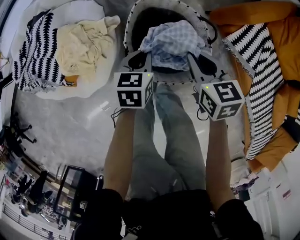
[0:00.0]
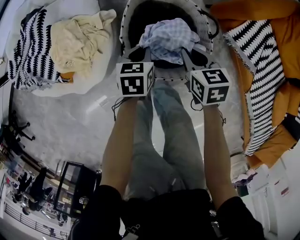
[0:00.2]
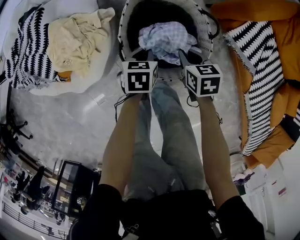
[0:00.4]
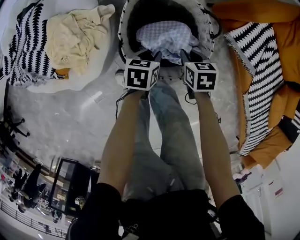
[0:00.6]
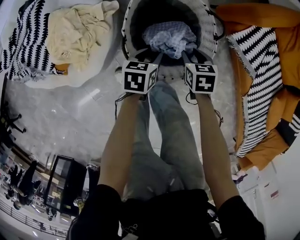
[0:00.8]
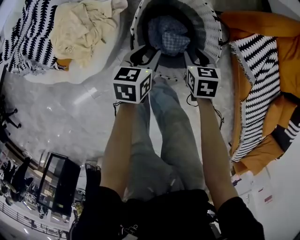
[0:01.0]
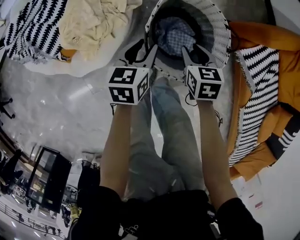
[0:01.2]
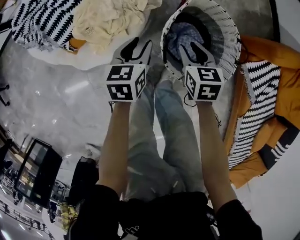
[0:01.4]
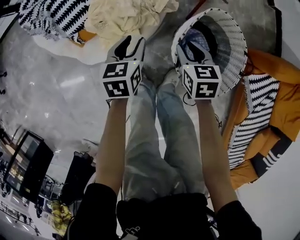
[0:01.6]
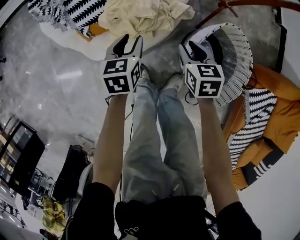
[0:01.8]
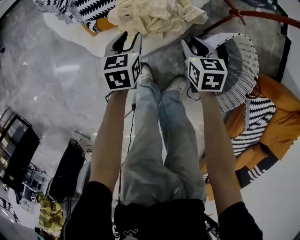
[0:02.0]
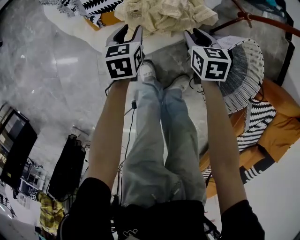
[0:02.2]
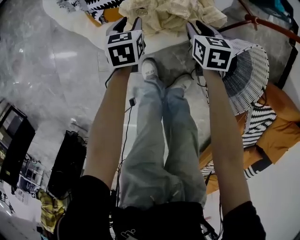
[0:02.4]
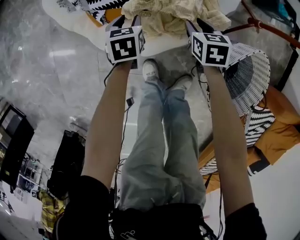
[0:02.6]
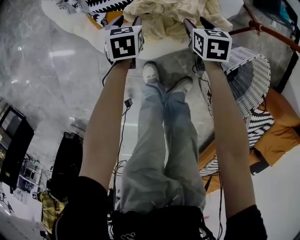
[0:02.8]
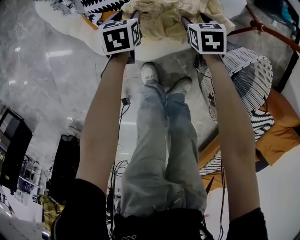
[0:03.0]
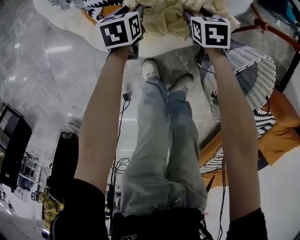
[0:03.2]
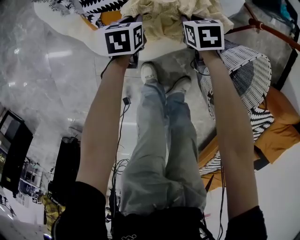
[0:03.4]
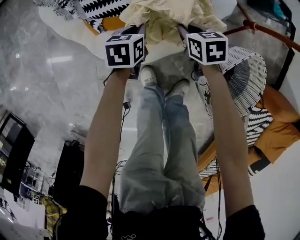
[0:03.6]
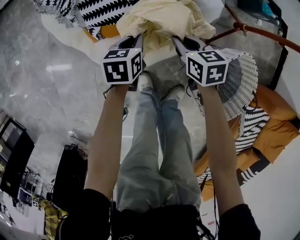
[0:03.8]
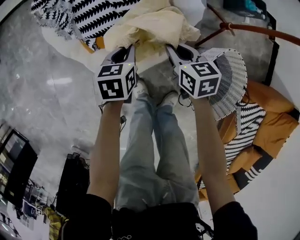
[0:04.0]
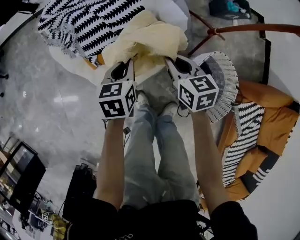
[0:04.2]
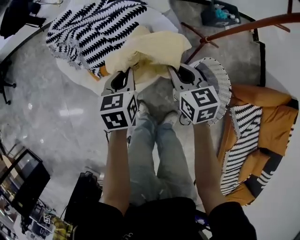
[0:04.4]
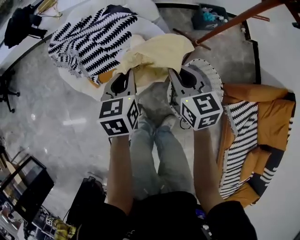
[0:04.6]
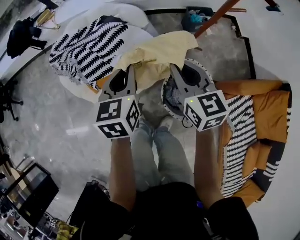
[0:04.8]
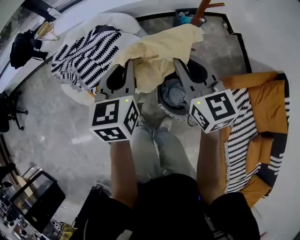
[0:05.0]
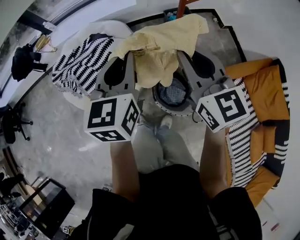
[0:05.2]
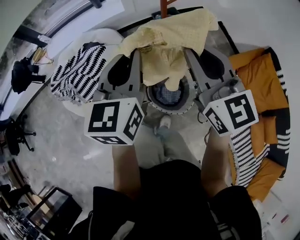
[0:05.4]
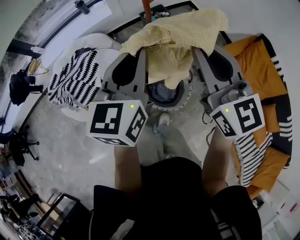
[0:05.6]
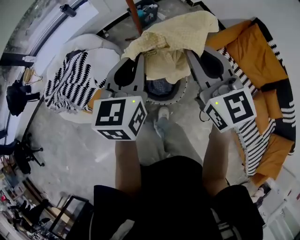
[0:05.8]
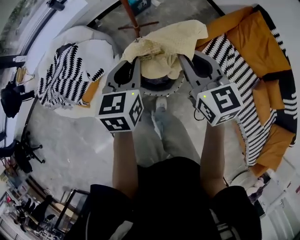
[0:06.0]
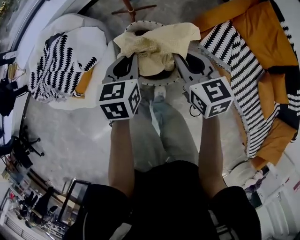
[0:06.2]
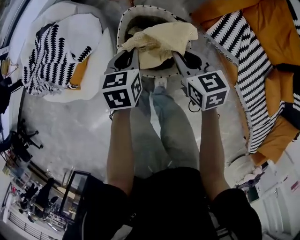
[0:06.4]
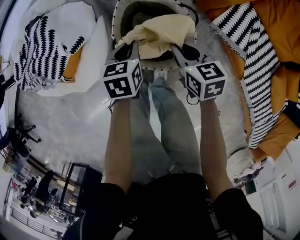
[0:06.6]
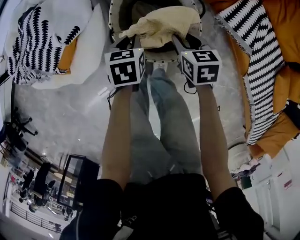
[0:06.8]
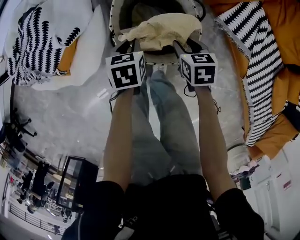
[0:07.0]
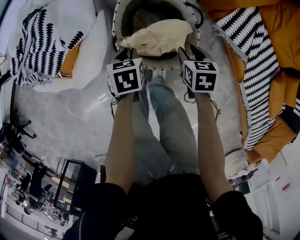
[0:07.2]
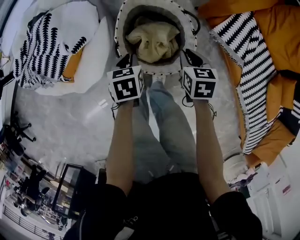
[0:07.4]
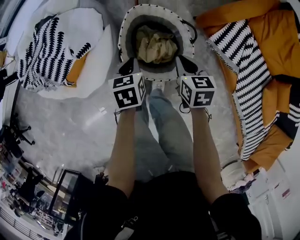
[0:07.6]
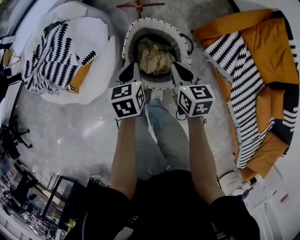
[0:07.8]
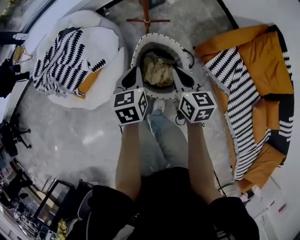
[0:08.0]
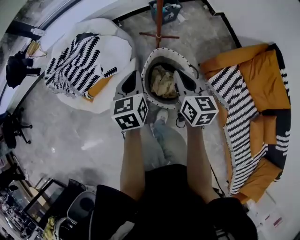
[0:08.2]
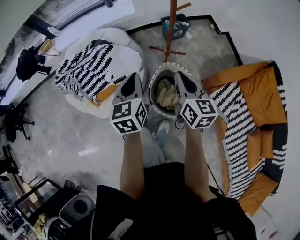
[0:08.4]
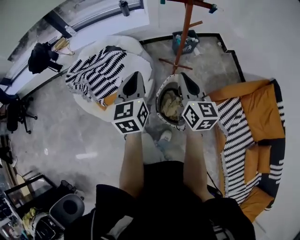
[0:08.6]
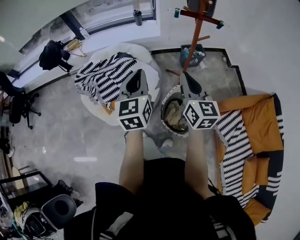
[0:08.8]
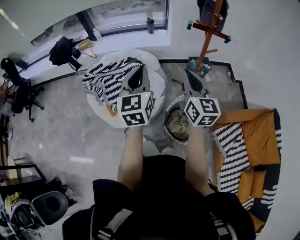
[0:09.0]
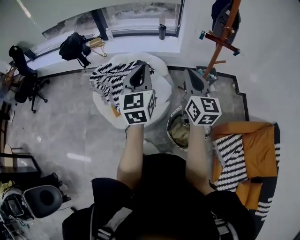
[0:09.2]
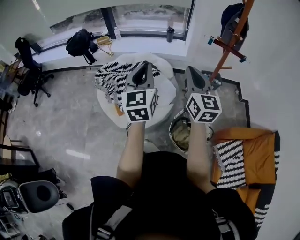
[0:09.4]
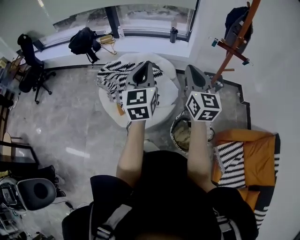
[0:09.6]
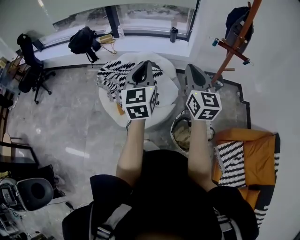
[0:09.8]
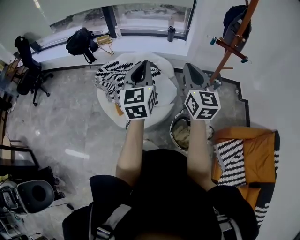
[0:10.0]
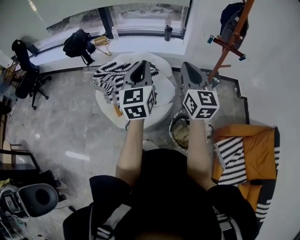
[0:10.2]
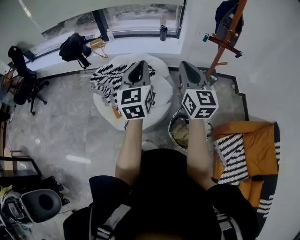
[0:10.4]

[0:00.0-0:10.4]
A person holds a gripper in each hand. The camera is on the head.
0:00.0 to 0:01.4: The left gripper moves roughly 10 cm downward and comes back, turns by some 20 degrees, and opens up; the right gripper shifts by some 20 cm, and opens its fingers.
0:01.4 to 0:03.0: The left gripper moves roughly 40 cm, and swivels approximately 30 degrees. The right gripper changes place by approximately 35 cm, changes its angle by some 30 degrees, and opens.
0:03.0 to 0:04.4: Both grippers move upward, approximately 35 cm. The right gripper tips its fingers upward by approximately 30 degrees, and closes up. The left gripper closes.
0:04.4 to 0:06.0: The right gripper moves some 50 cm, and turns by approximately 30 degrees. The left gripper moves about 40 cm, and swivels some 40 degrees.
0:06.0 to 0:07.4: Both grippers move downward, about 35 cm. The left gripper tilts its fingers approximately 30 degrees downward, while the right gripper points its fingers about 30 degrees further downward, and opens and closes again.
0:07.4 to 0:09.0: Both grippers travel together upward, some 50 cm. The left gripper tilts its fingers approximately 60 degrees upward. The right gripper points its fingers roughly 50 degrees further upward.
0:09.0 to 0:10.4: The left gripper is displaced to the left by roughly 10 cm; the right gripper moves to the left and upward, some 10 cm.

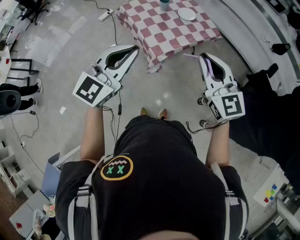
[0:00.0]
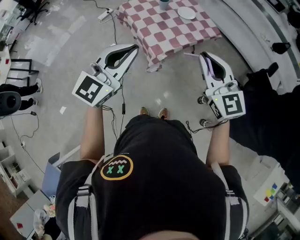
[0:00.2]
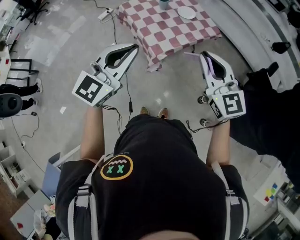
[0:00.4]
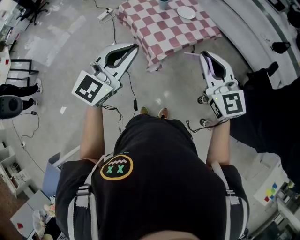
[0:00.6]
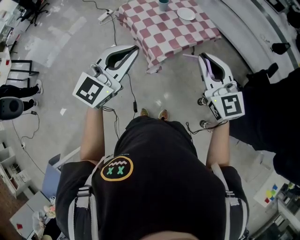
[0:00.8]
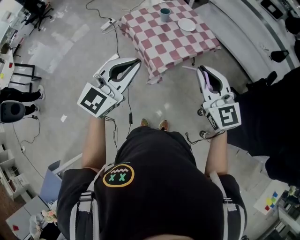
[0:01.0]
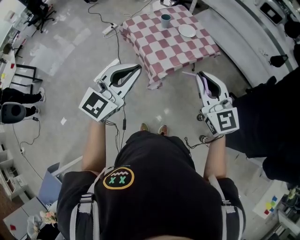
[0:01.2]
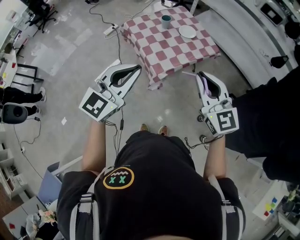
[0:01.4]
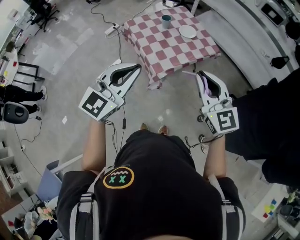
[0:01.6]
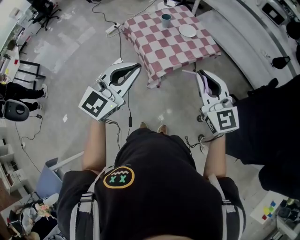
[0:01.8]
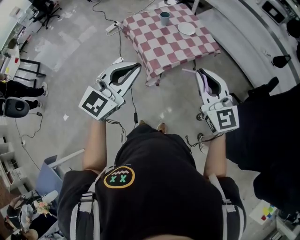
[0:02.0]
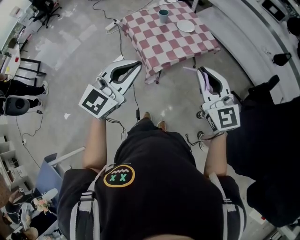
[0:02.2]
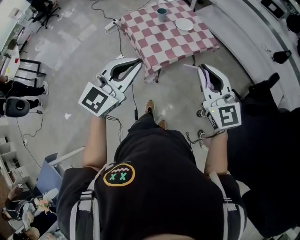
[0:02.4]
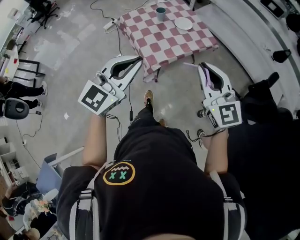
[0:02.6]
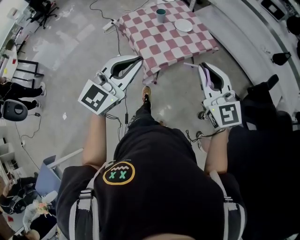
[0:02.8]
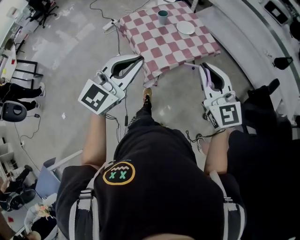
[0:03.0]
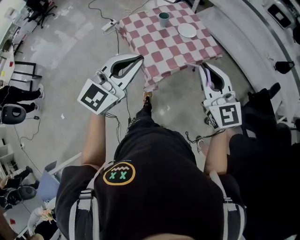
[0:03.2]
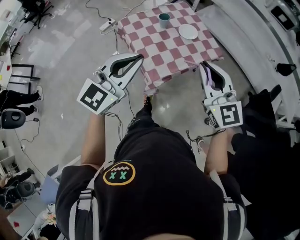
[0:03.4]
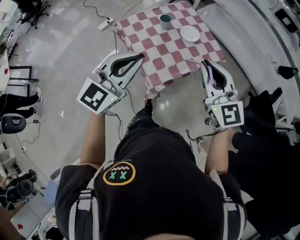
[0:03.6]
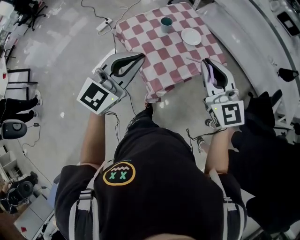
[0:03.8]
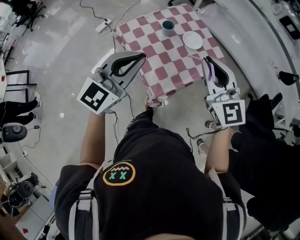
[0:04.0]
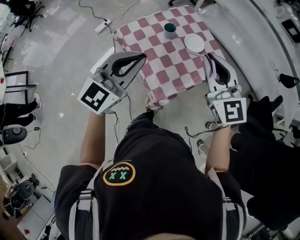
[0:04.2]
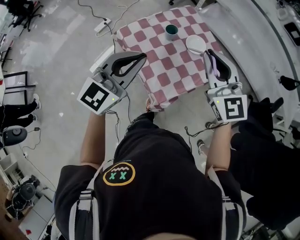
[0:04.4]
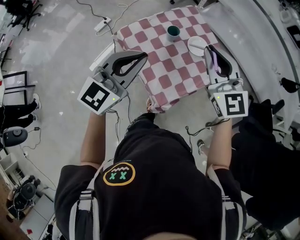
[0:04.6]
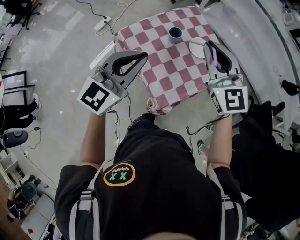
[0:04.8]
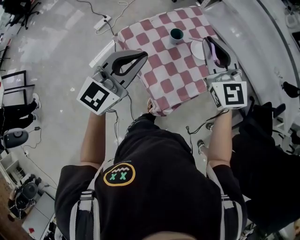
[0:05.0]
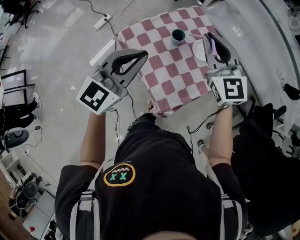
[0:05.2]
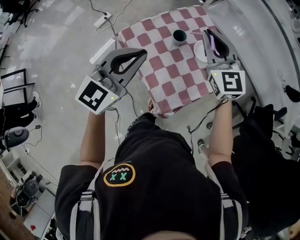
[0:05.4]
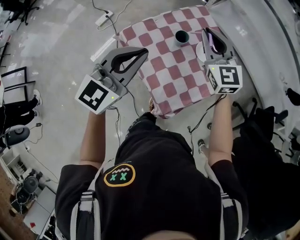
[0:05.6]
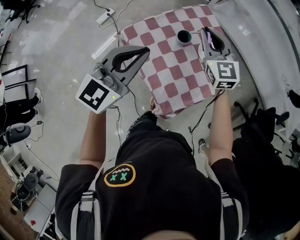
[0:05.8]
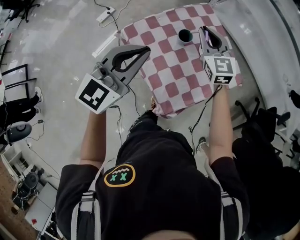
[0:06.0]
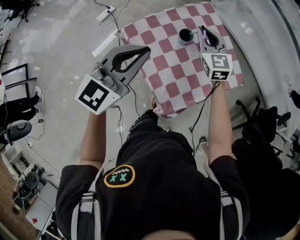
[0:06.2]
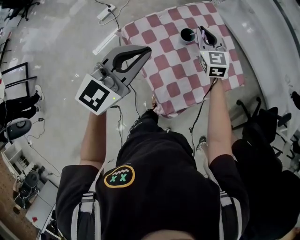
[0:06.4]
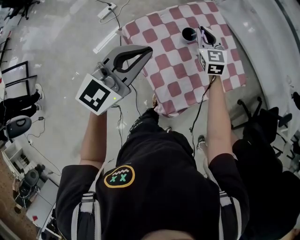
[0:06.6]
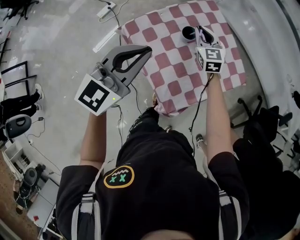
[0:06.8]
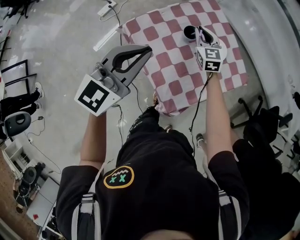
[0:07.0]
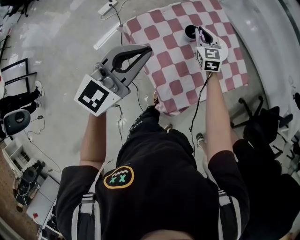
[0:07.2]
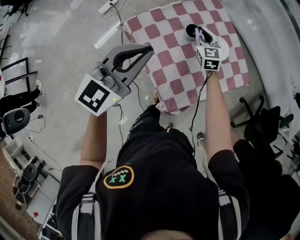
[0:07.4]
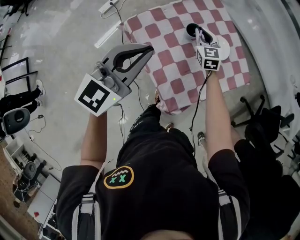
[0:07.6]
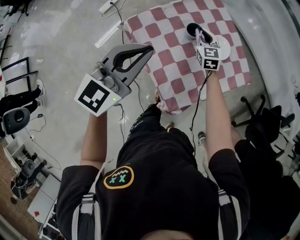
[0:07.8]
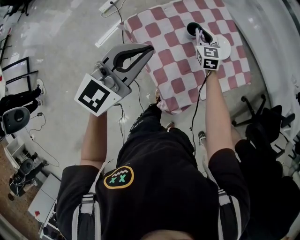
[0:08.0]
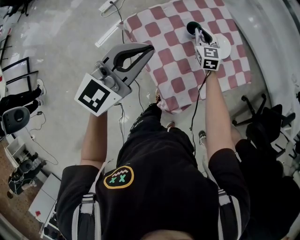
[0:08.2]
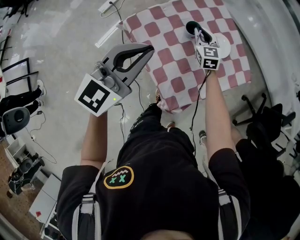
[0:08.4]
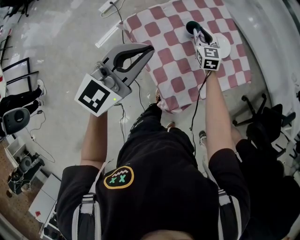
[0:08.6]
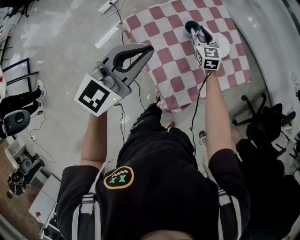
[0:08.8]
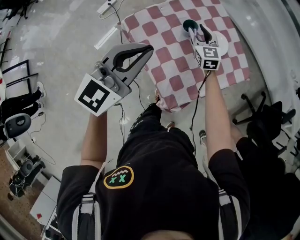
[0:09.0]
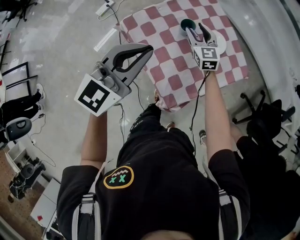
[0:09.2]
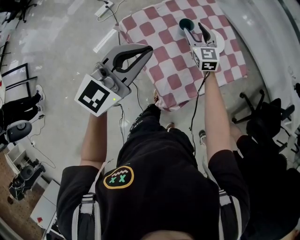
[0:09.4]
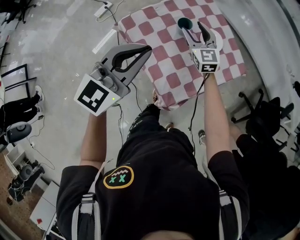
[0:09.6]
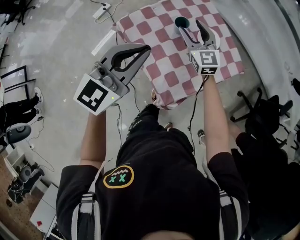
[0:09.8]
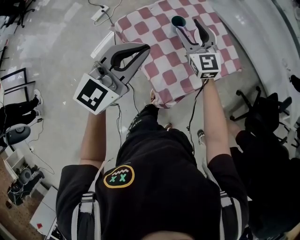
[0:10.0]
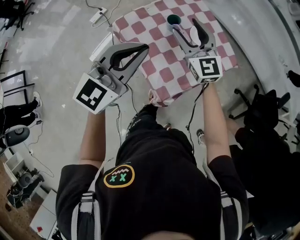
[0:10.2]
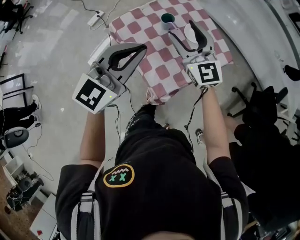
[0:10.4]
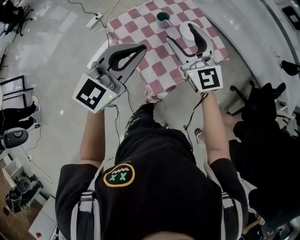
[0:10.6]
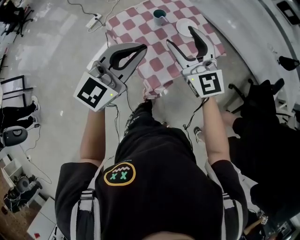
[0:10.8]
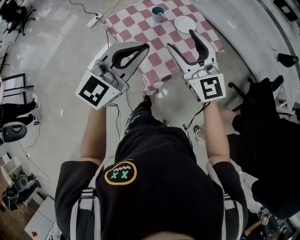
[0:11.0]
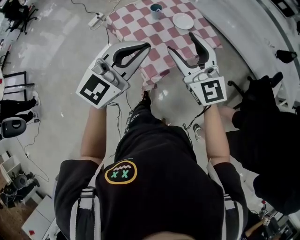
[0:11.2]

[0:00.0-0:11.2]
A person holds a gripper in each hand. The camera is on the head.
0:00.0 to 0:01.6: The grippers make only small movements.
0:01.6 to 0:03.2: The two grippers go roughly 10 cm forward.
0:03.2 to 0:04.8: Both grippers move forward and to the left, roughly 35 cm.
0:04.8 to 0:06.4: The right gripper heads downward and forward, covering approximately 30 cm, while the left gripper heads forward, covering about 10 cm.
0:06.4 to 0:08.0: The right gripper is displaced downward by approximately 10 cm.
0:08.0 to 0:09.6: The right gripper travels upward and backward by some 10 cm, and opens up.
0:09.6 to 0:11.2: The right gripper travels backward and upward by some 40 cm, and swivels approximately 20 degrees. The left gripper goes approximately 25 cm backward and to the right.

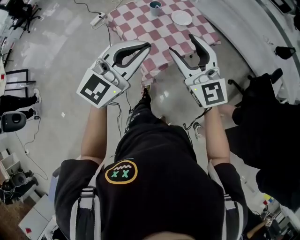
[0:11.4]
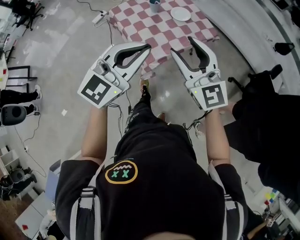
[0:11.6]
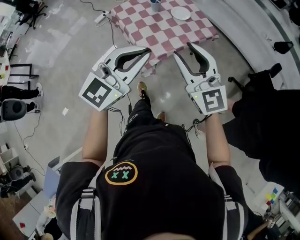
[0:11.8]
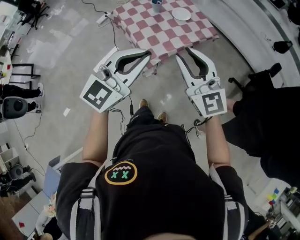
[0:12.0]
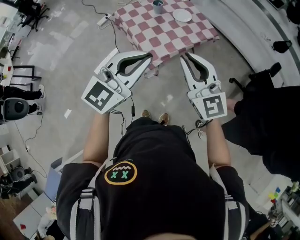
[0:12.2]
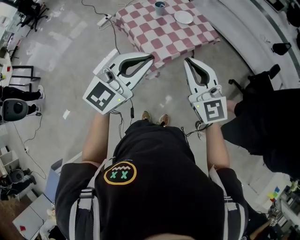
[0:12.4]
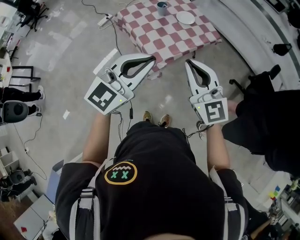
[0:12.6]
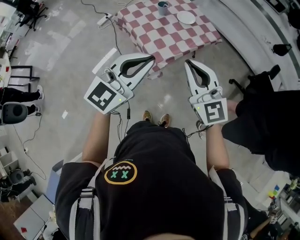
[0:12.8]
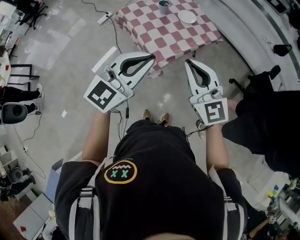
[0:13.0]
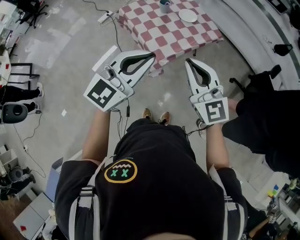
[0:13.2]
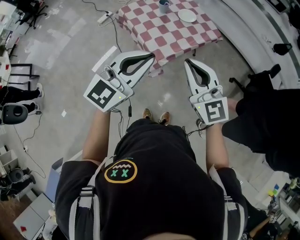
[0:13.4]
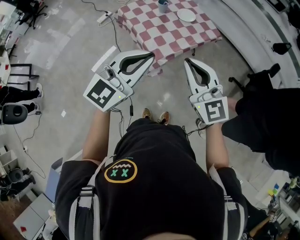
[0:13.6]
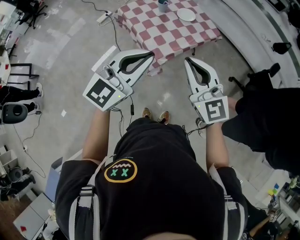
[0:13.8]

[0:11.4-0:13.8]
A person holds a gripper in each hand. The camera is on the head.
0:11.4 to 0:12.6: The two grippers go some 15 cm backward. The right gripper closes up.
0:12.6 to 0:13.8: There are only small adjustments of the grippers.
